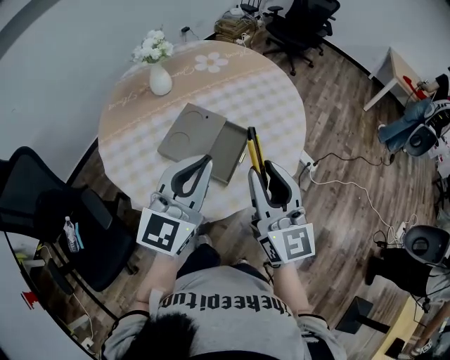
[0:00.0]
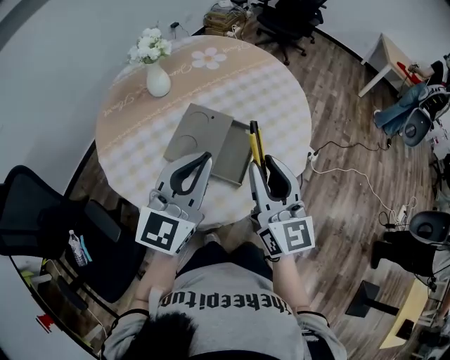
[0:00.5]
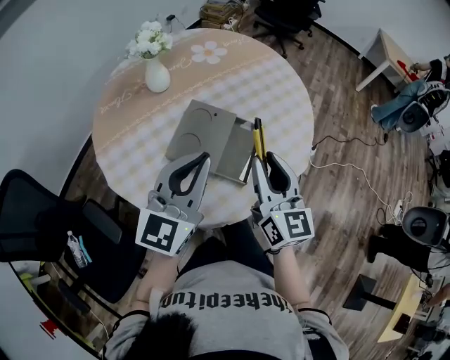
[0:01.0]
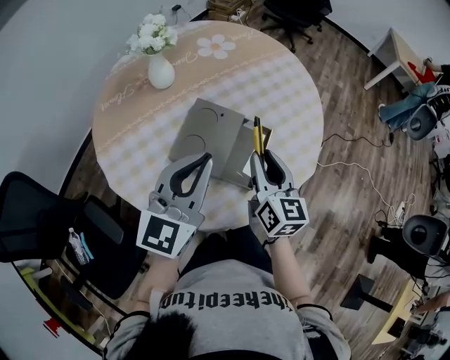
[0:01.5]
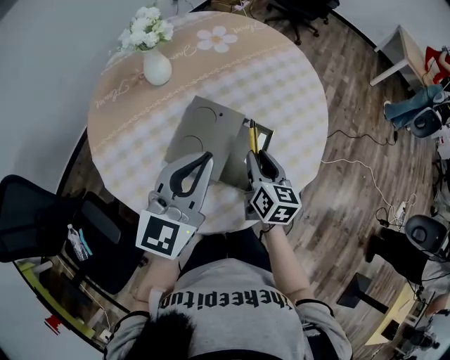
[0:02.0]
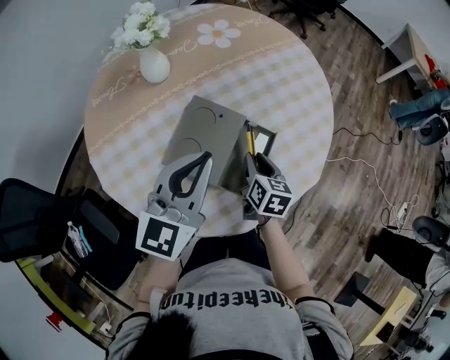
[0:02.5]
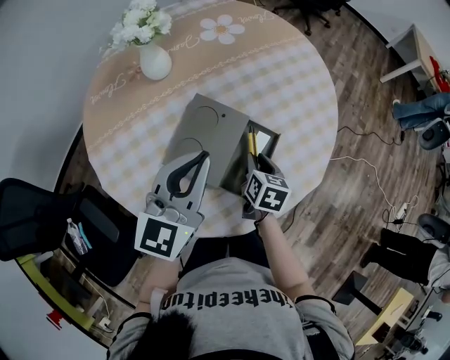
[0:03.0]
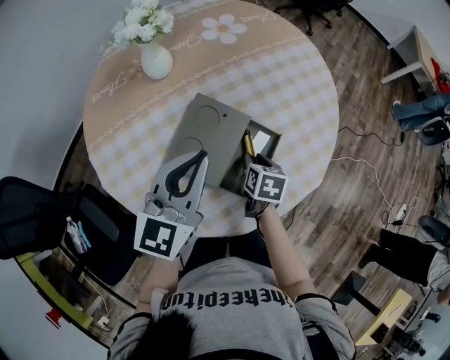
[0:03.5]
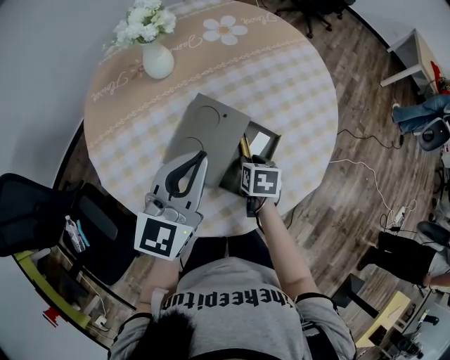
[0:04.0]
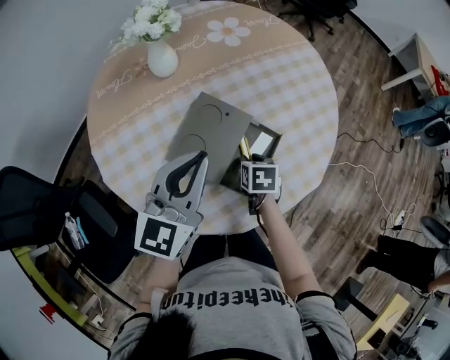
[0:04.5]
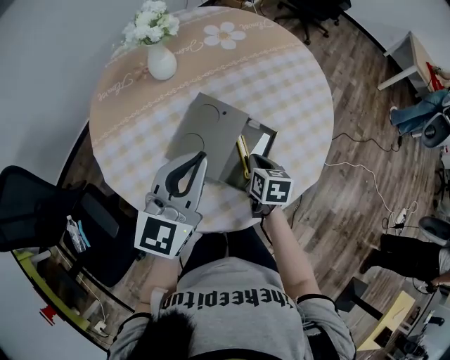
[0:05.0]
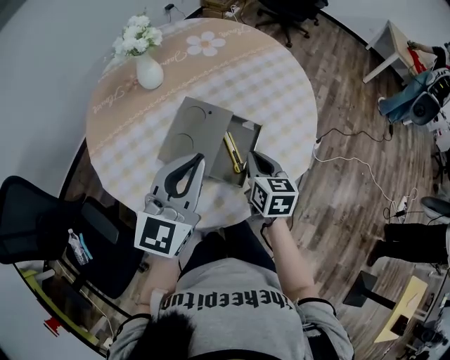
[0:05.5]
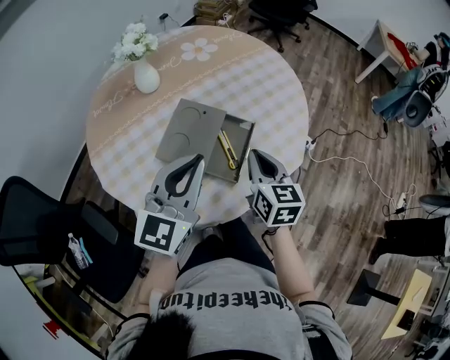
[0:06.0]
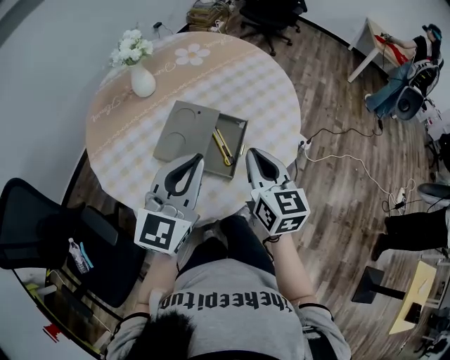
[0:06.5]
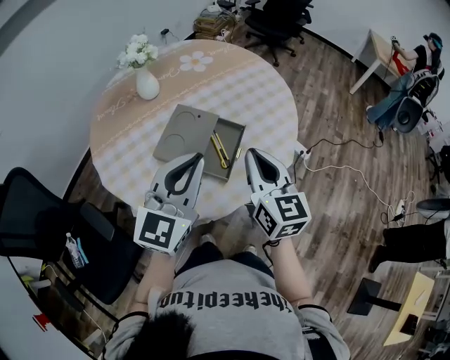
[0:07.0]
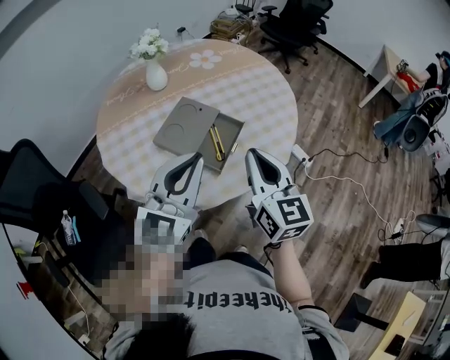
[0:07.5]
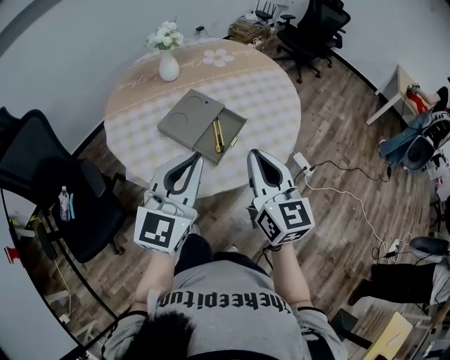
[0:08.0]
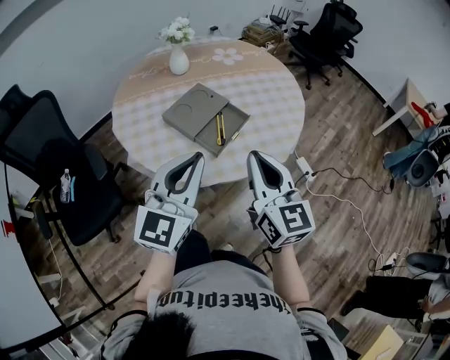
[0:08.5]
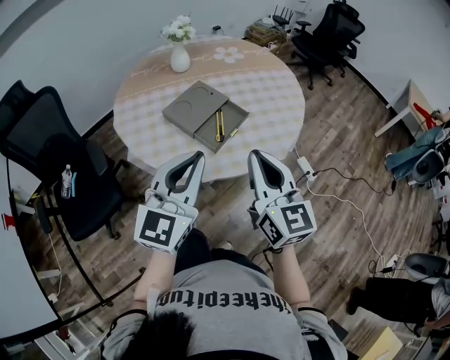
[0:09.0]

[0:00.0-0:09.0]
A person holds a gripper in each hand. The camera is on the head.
0:00.0 to 0:02.0: The left gripper travels forward, to the left and downward by approximately 15 cm. The right gripper heads downward and forward, covering roughly 25 cm, and angles its fingers downward, by some 30 degrees.
0:02.0 to 0:04.5: The right gripper moves downward, approximately 10 cm, and tips its fingers downward by roughly 40 degrees.
0:04.5 to 0:07.0: The left gripper goes some 15 cm backward, to the right and upward. Meanwhile the right gripper travels upward and backward by some 30 cm, angles its fingers upward, by approximately 50 degrees, and closes.
0:07.0 to 0:09.0: The two grippers go about 15 cm backward and to the right. The right gripper rotates about 20 degrees. Meanwhile the left gripper rotates approximately 20 degrees.

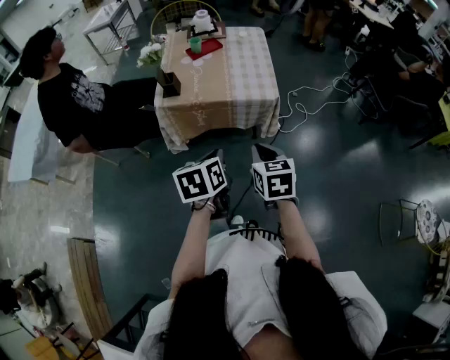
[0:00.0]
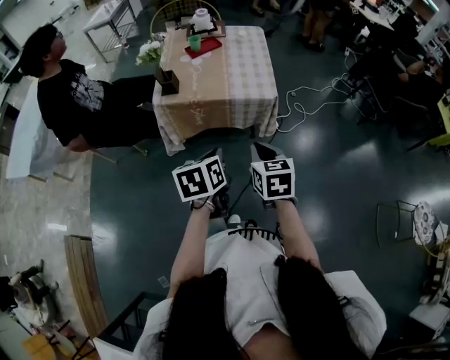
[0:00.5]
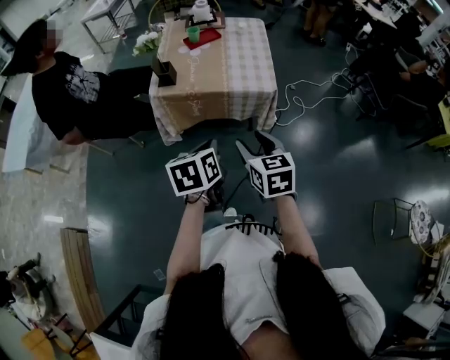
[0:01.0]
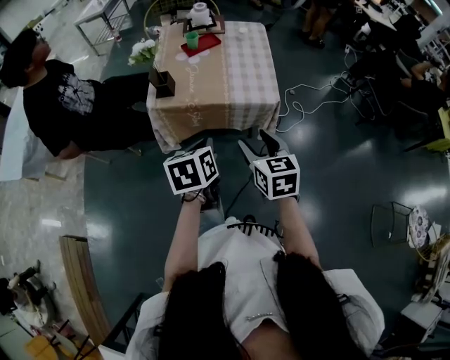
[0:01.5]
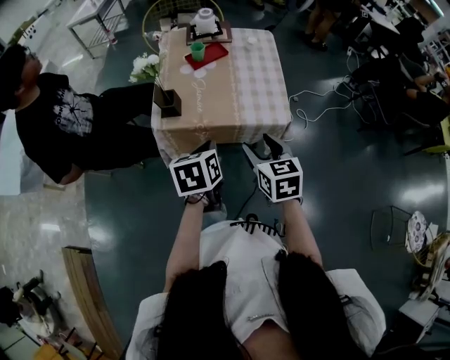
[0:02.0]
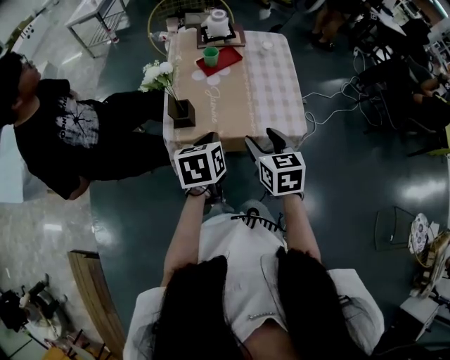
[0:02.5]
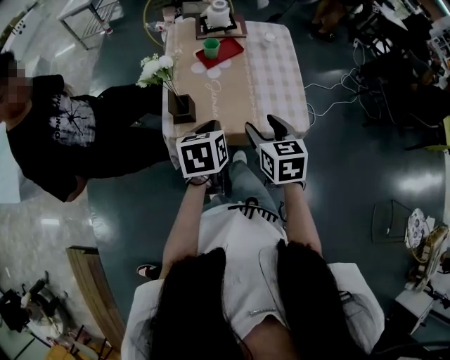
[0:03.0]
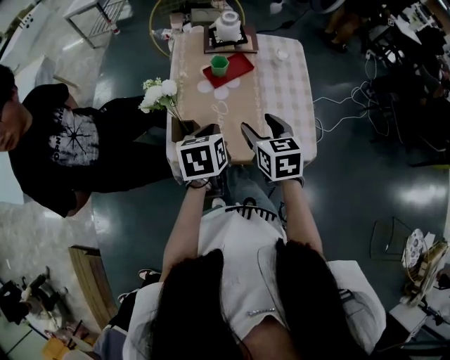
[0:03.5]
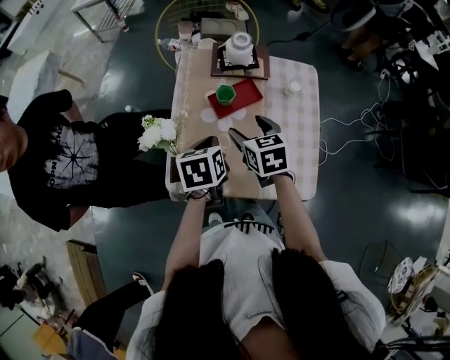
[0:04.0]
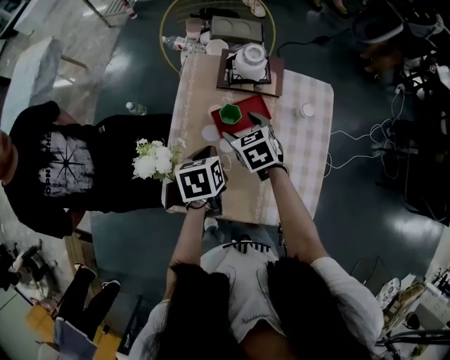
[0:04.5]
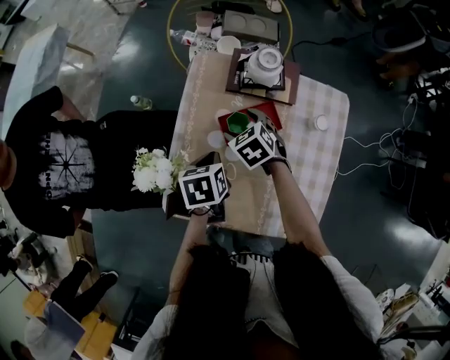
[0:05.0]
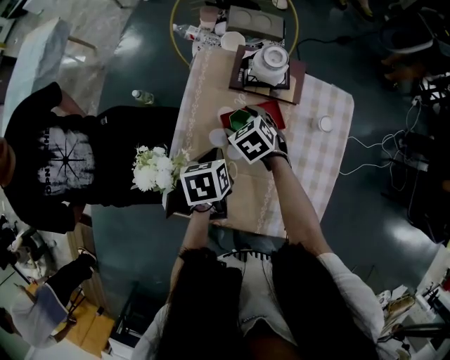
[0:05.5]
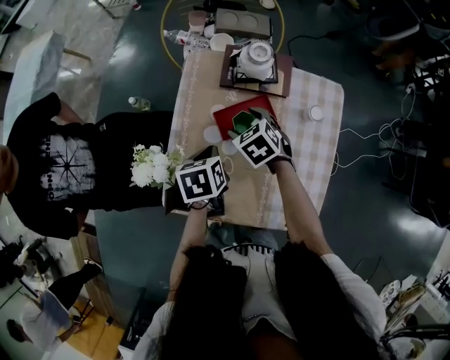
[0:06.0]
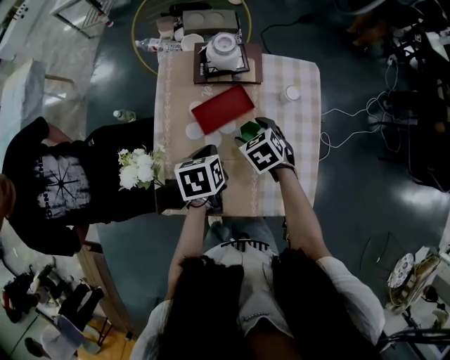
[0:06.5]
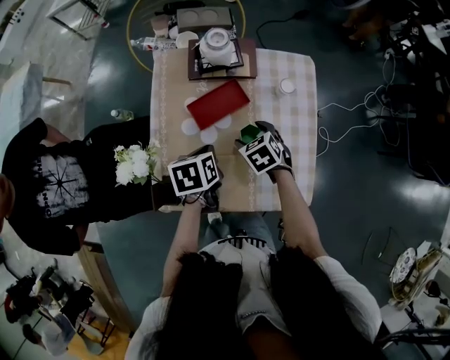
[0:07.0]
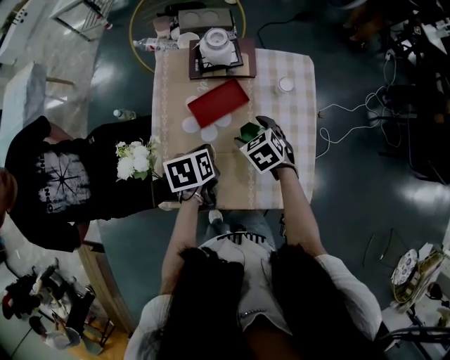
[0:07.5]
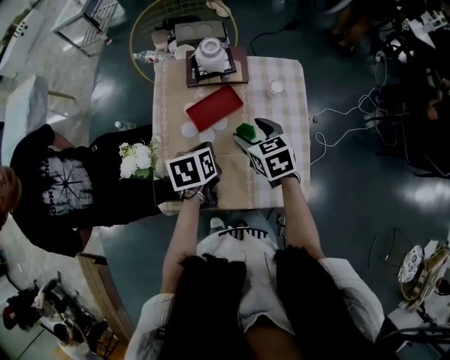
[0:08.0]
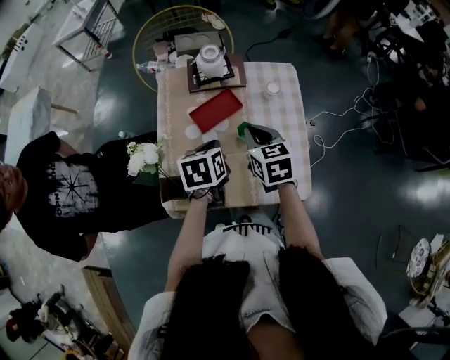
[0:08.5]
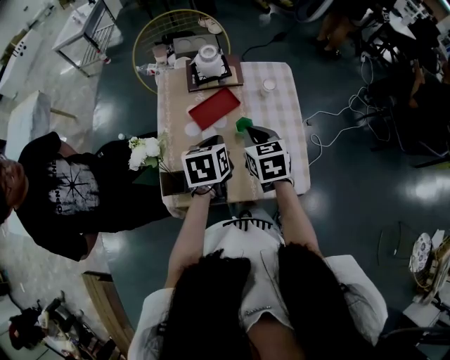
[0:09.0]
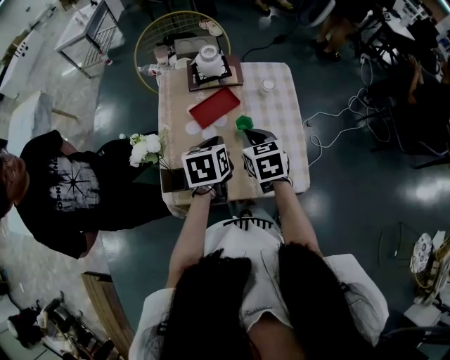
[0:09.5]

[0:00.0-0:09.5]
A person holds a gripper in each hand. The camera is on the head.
0:00.0 to 0:02.0: The grippers both shift forward by about 20 cm. The right gripper opens.
0:02.0 to 0:04.0: The grippers both shift forward by about 35 cm.
0:04.0 to 0:05.5: The right gripper moves forward and downward, approximately 20 cm, and turns by some 30 degrees. Meanwhile the left gripper travels downward and forward by about 15 cm.
0:05.5 to 0:07.5: The right gripper moves to the right and backward, roughly 15 cm. Meanwhile the left gripper travels backward and to the right by some 5 cm.
0:07.5 to 0:09.5: The left gripper moves upward, about 10 cm, while the right gripper is displaced upward and backward by roughly 15 cm, changes its angle by about 30 degrees, and closes.

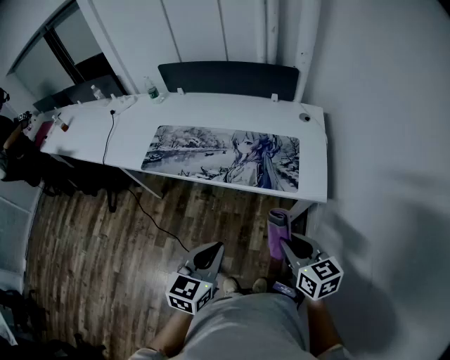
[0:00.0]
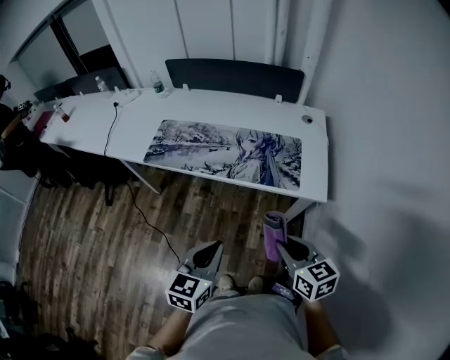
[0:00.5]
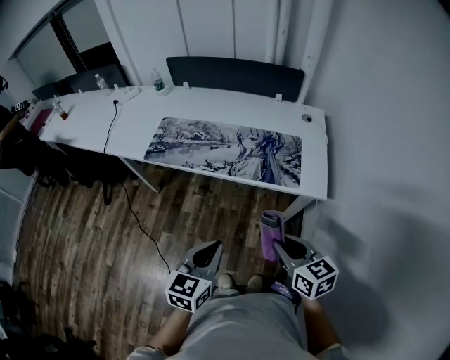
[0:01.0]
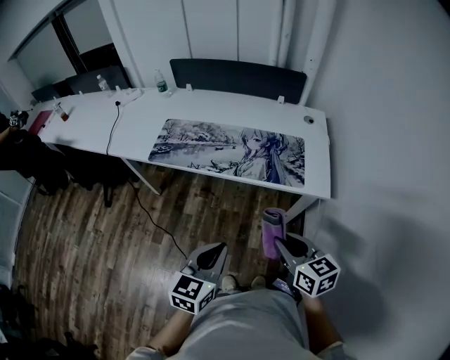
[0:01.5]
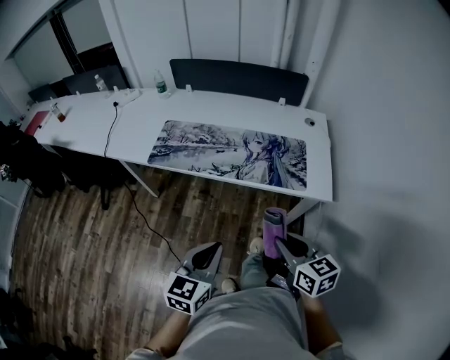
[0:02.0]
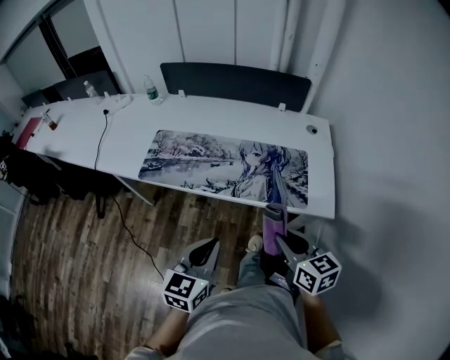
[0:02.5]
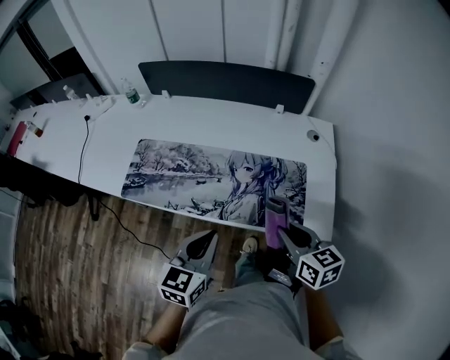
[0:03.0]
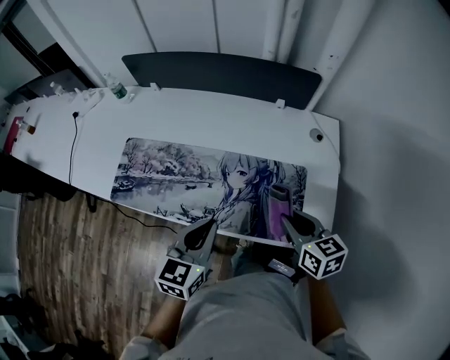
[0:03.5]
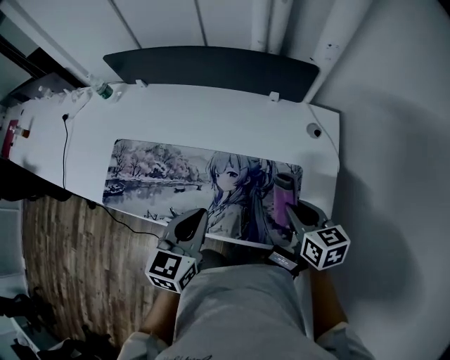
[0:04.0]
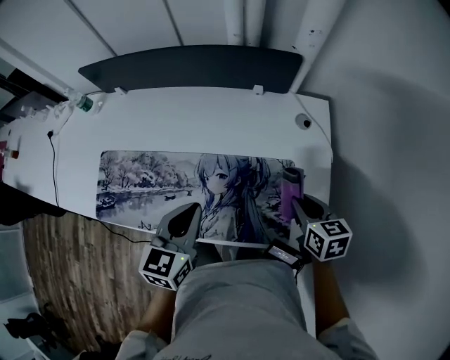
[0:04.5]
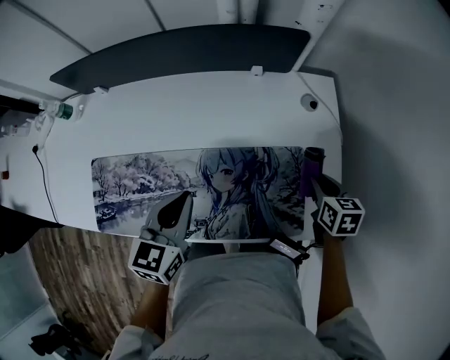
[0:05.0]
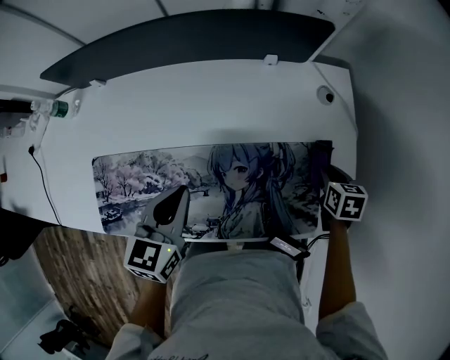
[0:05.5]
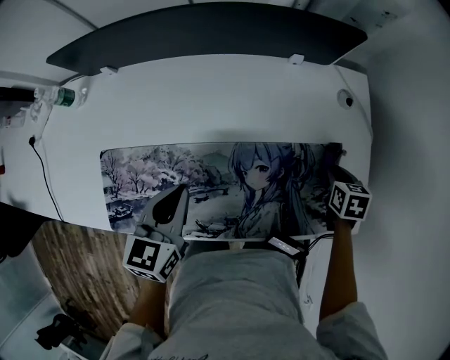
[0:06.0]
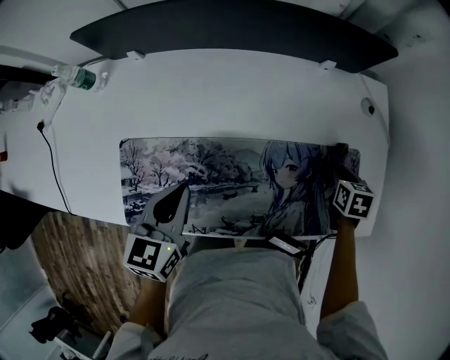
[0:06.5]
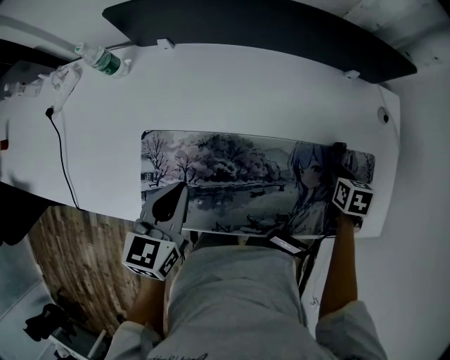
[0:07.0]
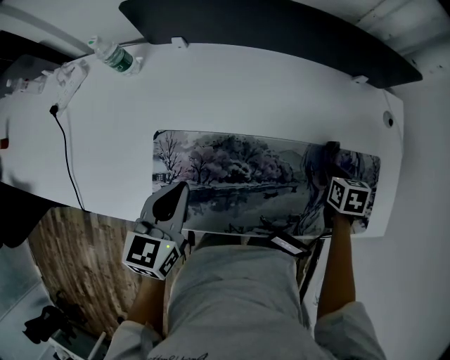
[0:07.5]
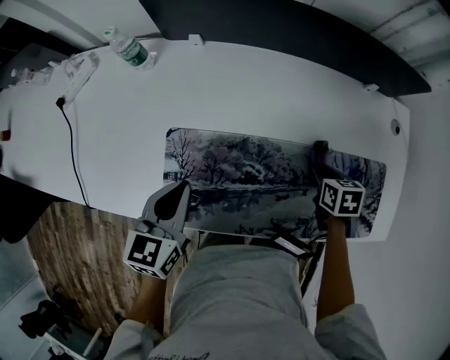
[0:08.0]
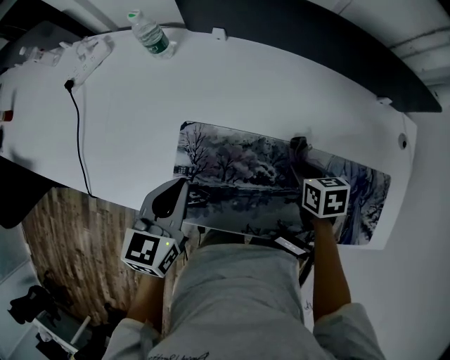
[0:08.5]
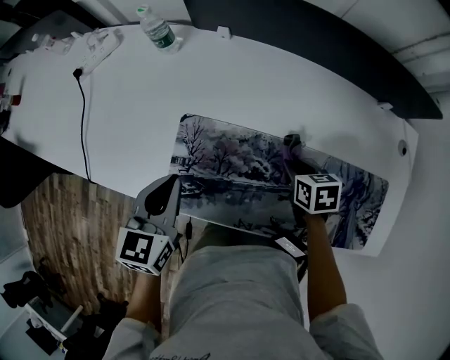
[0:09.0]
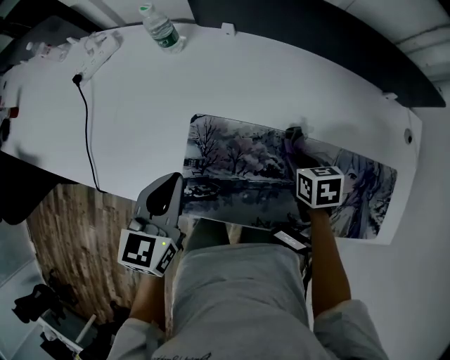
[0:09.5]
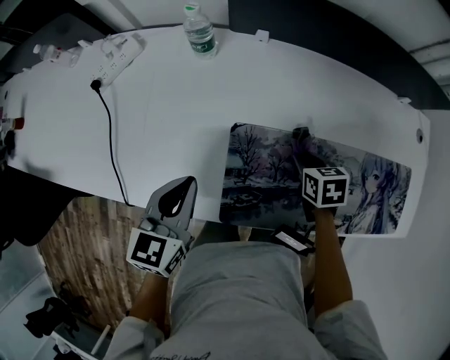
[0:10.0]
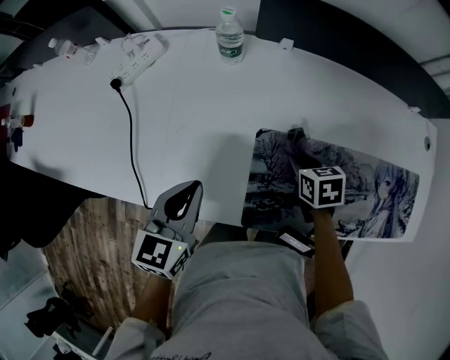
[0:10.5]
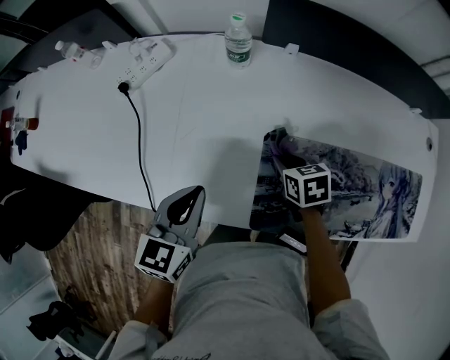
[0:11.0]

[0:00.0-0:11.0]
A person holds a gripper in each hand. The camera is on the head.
0:00.0 to 0:02.0: Both grippers move to the left, roughly 10 cm.
0:02.0 to 0:03.5: Both grippers travel together forward, roughly 35 cm.
0:03.5 to 0:05.5: The right gripper travels downward, forward and to the right by approximately 25 cm, and rotates about 40 degrees, while the left gripper heads forward, covering about 20 cm.
0:05.5 to 0:07.5: The two grippers go some 25 cm to the left.
0:07.5 to 0:09.0: The right gripper moves approximately 20 cm, and rotates some 20 degrees. Meanwhile the left gripper changes place by about 5 cm.
0:09.0 to 0:11.0: Both grippers travel together to the left, some 25 cm.
